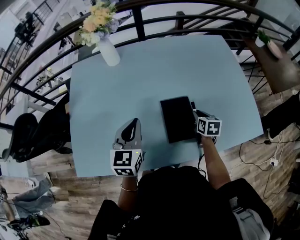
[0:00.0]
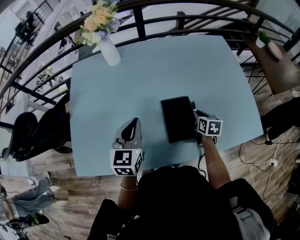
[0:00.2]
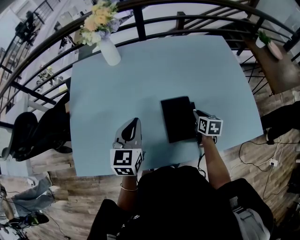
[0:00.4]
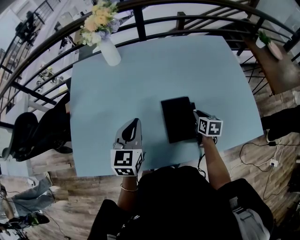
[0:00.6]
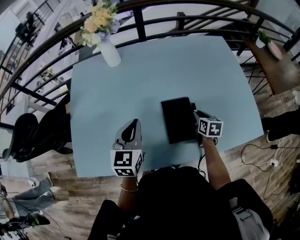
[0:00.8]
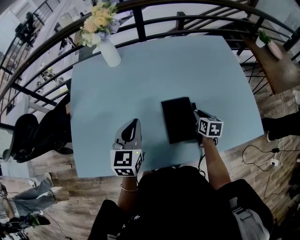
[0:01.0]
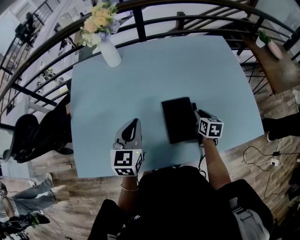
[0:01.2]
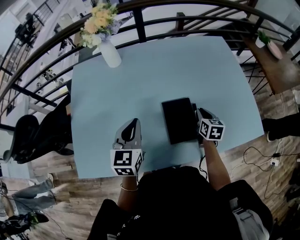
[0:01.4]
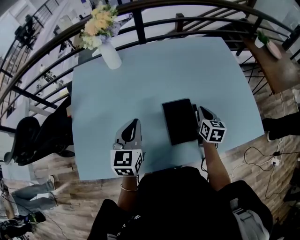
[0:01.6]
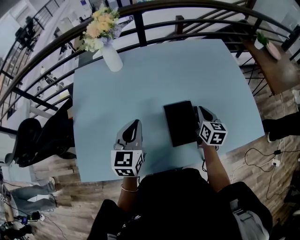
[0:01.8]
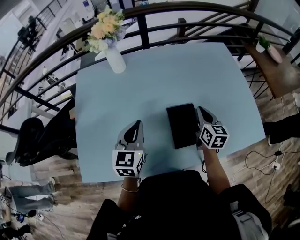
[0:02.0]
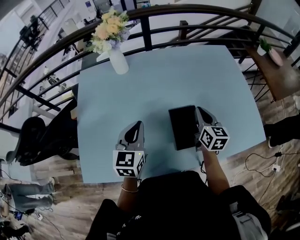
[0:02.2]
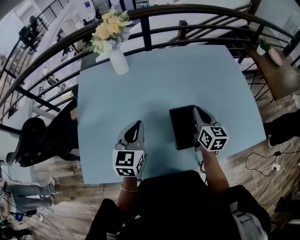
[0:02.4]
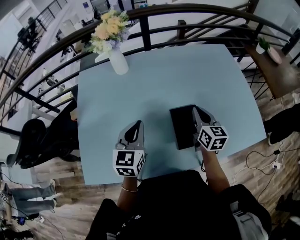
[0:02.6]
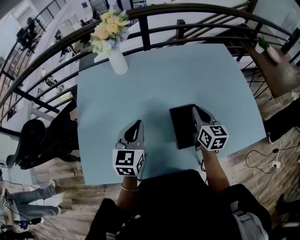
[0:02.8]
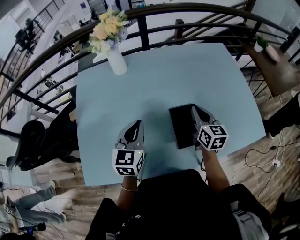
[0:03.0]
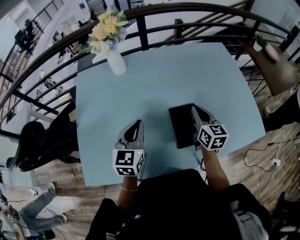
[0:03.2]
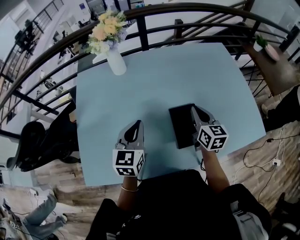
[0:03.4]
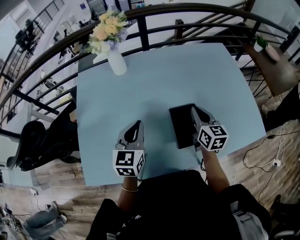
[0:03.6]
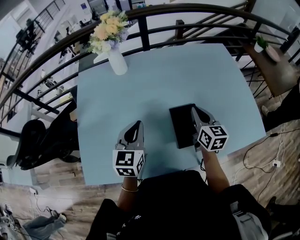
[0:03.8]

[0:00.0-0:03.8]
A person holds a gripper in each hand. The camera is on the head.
0:00.0 to 0:01.2: The two grippers keep their place.
0:01.2 to 0:02.6: The right gripper travels upward and to the left by about 15 cm, and swivels some 20 degrees.
0:02.6 to 0:03.8: Neither gripper changes place.

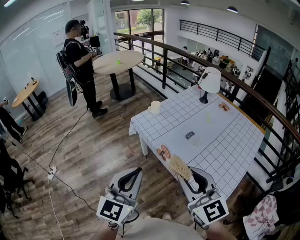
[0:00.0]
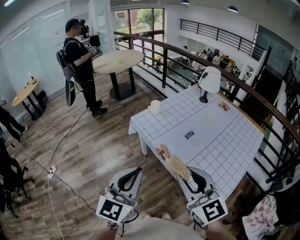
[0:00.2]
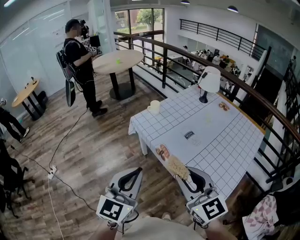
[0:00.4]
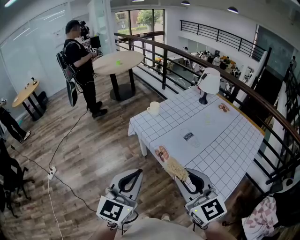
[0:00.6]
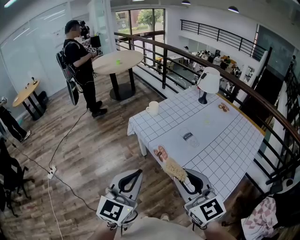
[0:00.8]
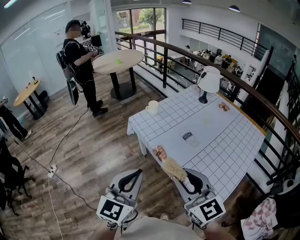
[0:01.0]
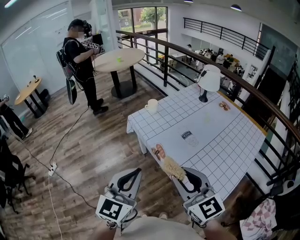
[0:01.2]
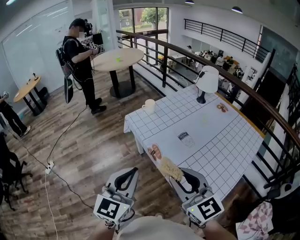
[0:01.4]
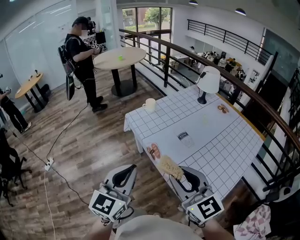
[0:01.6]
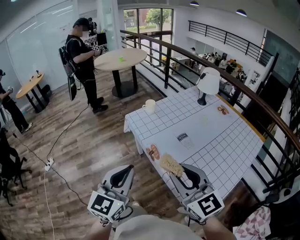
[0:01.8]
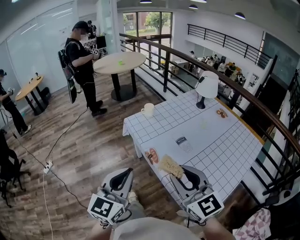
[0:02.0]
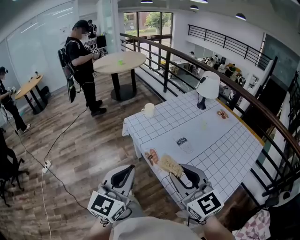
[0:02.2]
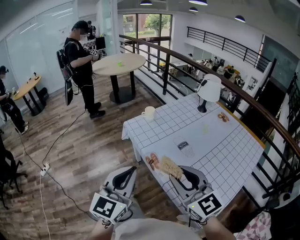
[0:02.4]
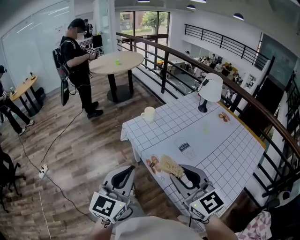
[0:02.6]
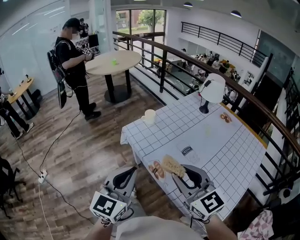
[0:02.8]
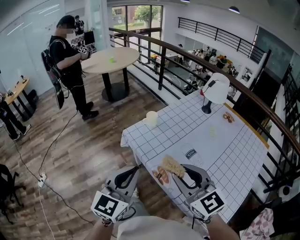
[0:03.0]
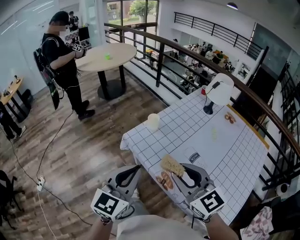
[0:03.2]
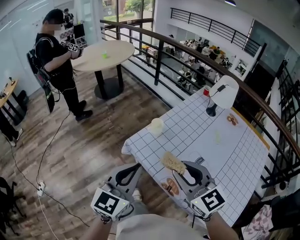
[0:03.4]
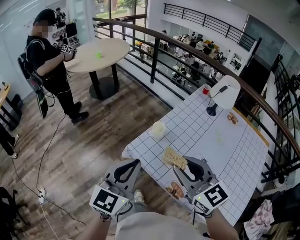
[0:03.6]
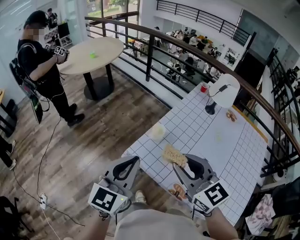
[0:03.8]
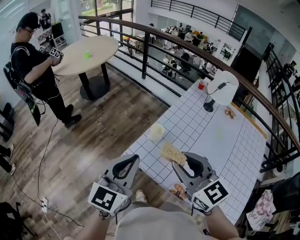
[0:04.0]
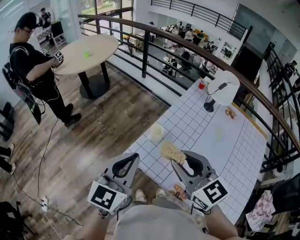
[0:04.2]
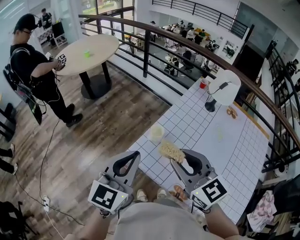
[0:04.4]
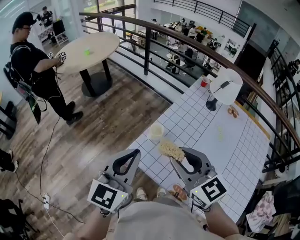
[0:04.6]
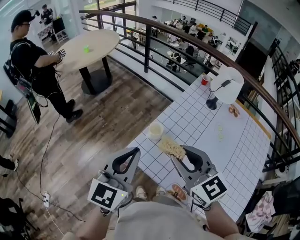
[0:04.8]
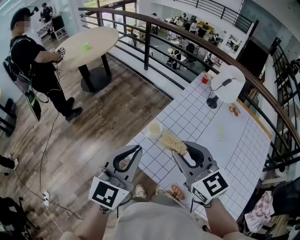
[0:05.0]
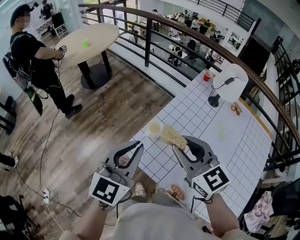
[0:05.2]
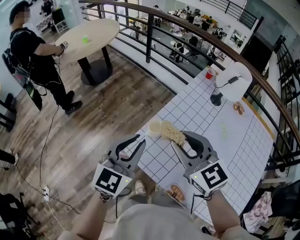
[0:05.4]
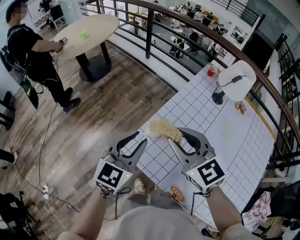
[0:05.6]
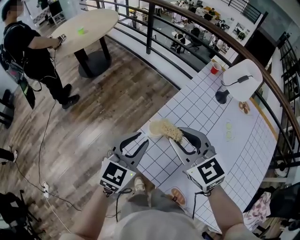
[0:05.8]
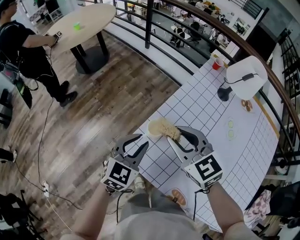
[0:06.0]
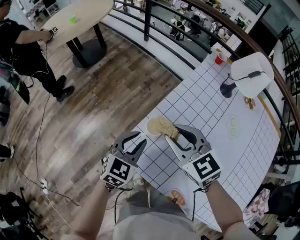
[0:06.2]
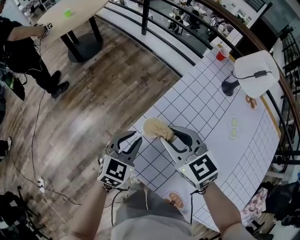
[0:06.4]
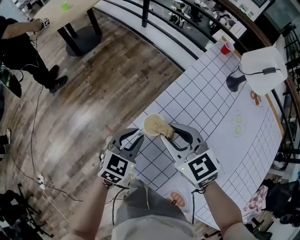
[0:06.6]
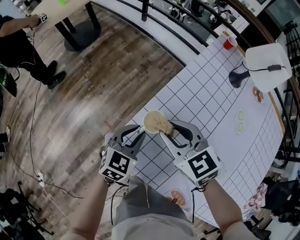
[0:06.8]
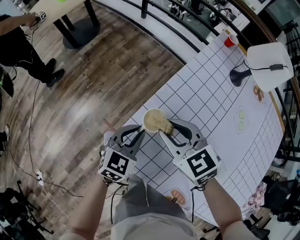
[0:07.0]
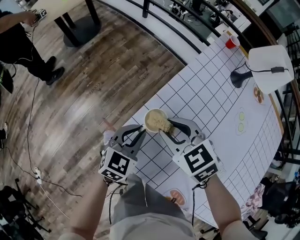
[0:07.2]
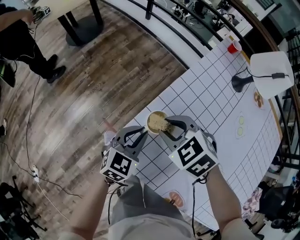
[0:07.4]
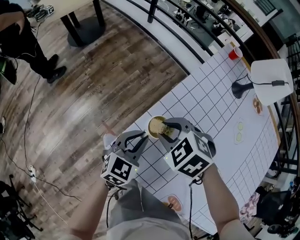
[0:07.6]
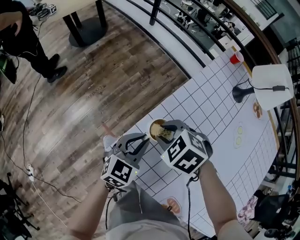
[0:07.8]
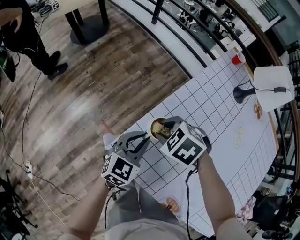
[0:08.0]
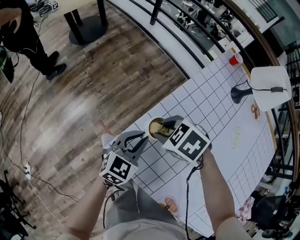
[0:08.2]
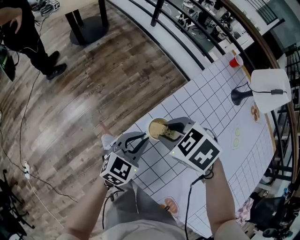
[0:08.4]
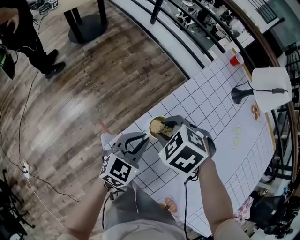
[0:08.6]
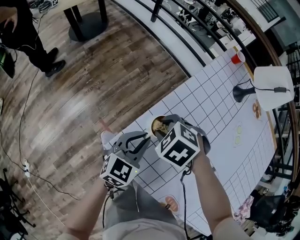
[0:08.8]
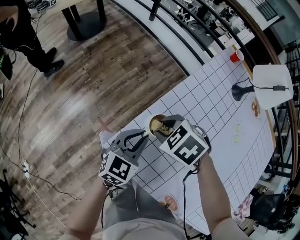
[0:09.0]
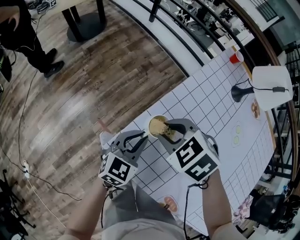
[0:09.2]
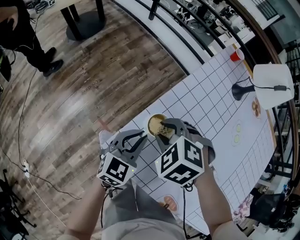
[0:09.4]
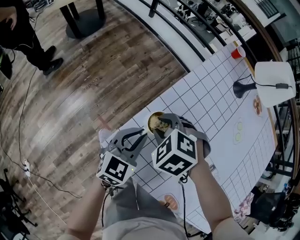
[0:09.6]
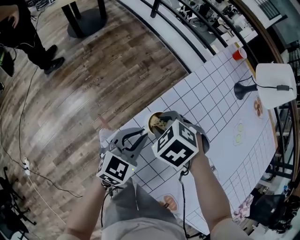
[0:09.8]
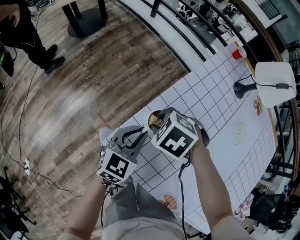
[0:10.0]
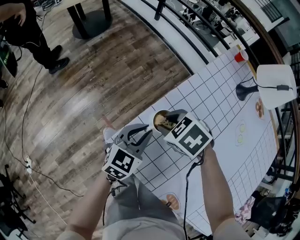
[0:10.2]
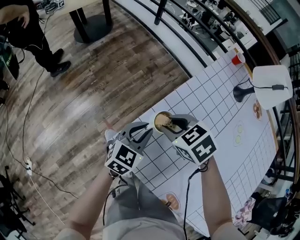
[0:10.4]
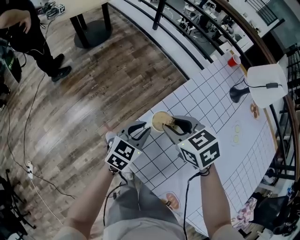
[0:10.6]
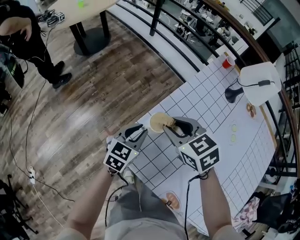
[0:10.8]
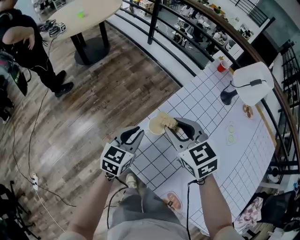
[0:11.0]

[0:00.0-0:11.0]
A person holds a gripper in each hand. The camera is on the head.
0:00.0 to 0:01.6: Both grippers move to the right, about 5 cm.
0:01.6 to 0:03.2: Both grippers move forward, some 25 cm.
0:03.2 to 0:04.8: Both grippers travel together forward, about 20 cm.
0:04.8 to 0:06.2: The left gripper heads downward and forward, covering some 30 cm, swivels about 30 degrees, and opens, while the right gripper travels forward and downward by approximately 25 cm.
0:06.2 to 0:07.8: The right gripper moves downward, approximately 15 cm, and angles its fingers downward, by some 40 degrees. Meanwhile the left gripper moves downward, roughly 10 cm.
0:07.8 to 0:09.4: There are only small adjustments of the grippers.
0:09.4 to 0:11.0: The right gripper goes roughly 10 cm upward, and tilts its fingers some 30 degrees upward. Meanwhile the left gripper shifts roughly 5 cm upward.

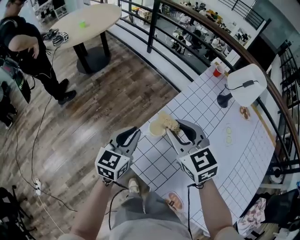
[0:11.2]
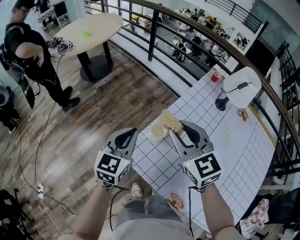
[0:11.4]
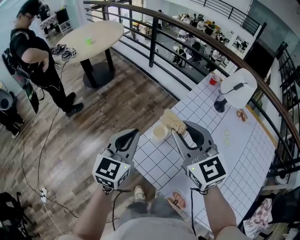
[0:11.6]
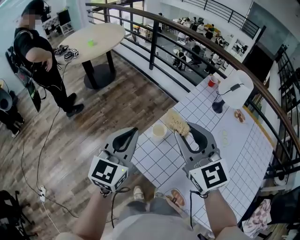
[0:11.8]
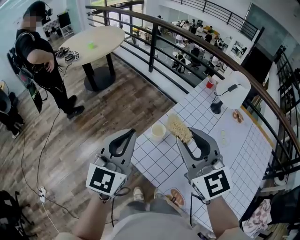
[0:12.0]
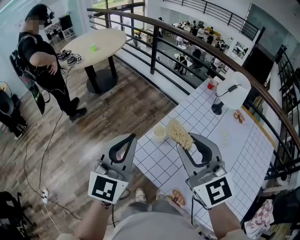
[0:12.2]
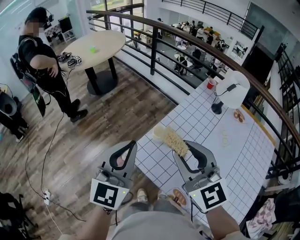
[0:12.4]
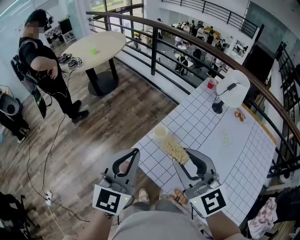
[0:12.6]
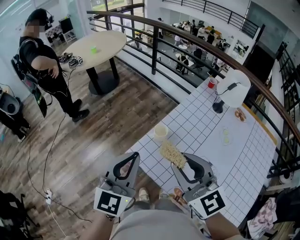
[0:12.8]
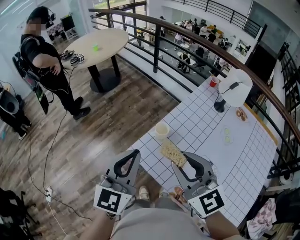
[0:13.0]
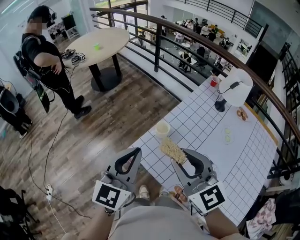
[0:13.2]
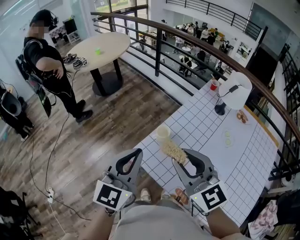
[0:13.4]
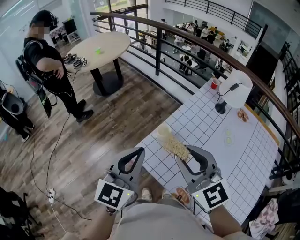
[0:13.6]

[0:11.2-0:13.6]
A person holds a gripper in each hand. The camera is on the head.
0:11.2 to 0:12.4: The grippers both shift upward and backward by some 25 cm. The left gripper turns by roughly 30 degrees; the right gripper rotates approximately 20 degrees.
0:12.4 to 0:13.6: The grippers make only small movements.

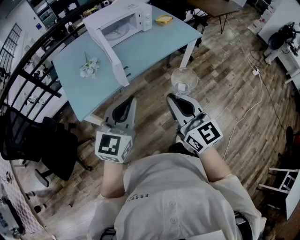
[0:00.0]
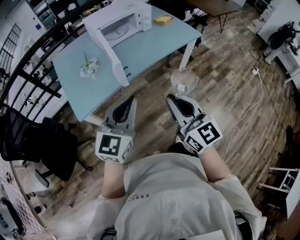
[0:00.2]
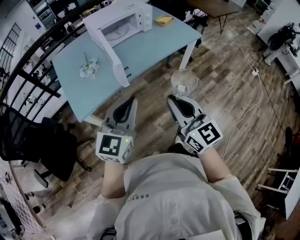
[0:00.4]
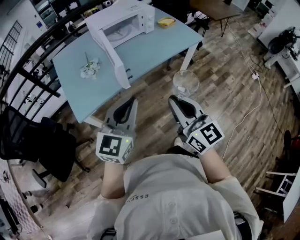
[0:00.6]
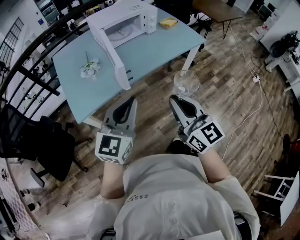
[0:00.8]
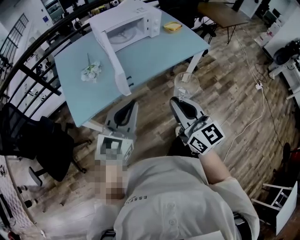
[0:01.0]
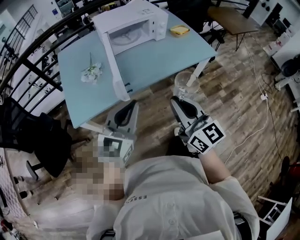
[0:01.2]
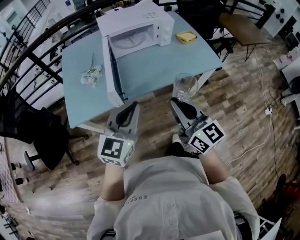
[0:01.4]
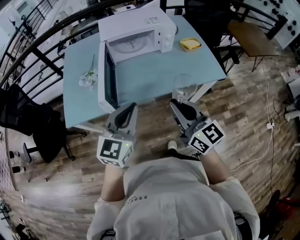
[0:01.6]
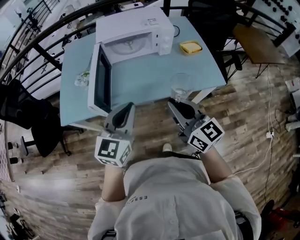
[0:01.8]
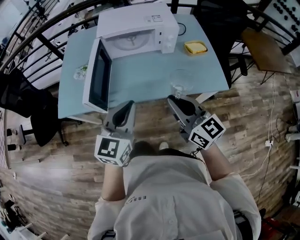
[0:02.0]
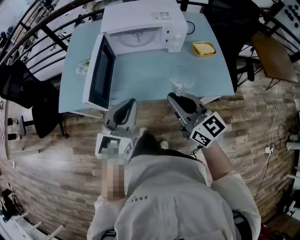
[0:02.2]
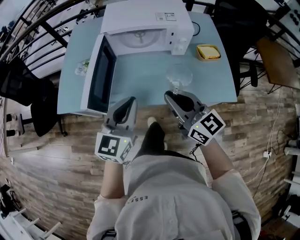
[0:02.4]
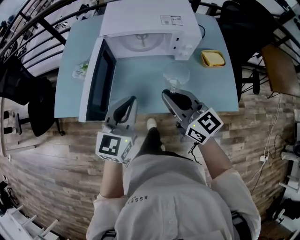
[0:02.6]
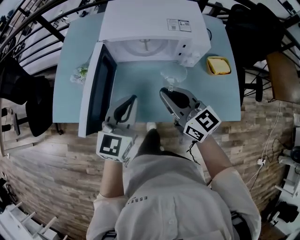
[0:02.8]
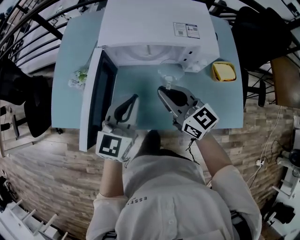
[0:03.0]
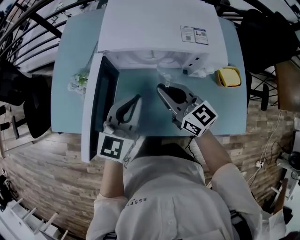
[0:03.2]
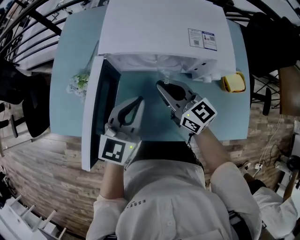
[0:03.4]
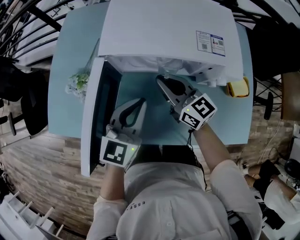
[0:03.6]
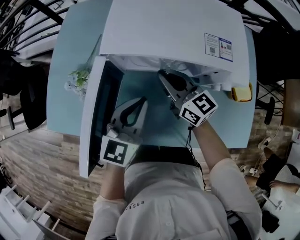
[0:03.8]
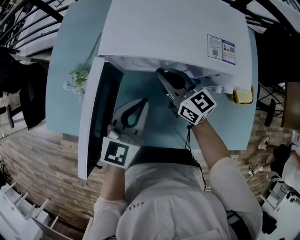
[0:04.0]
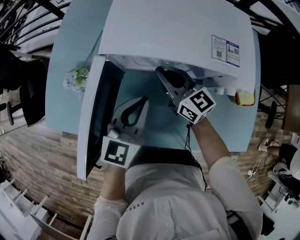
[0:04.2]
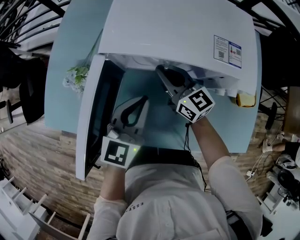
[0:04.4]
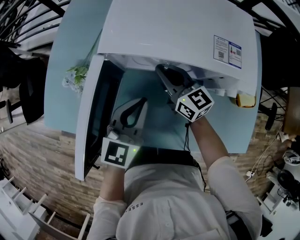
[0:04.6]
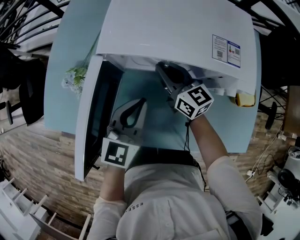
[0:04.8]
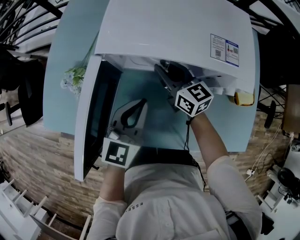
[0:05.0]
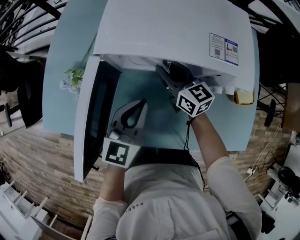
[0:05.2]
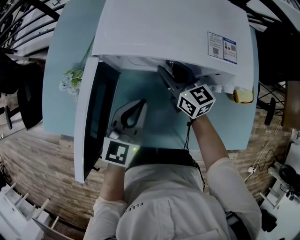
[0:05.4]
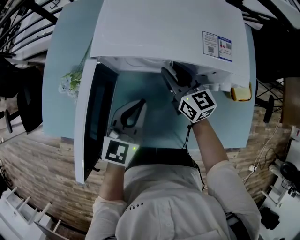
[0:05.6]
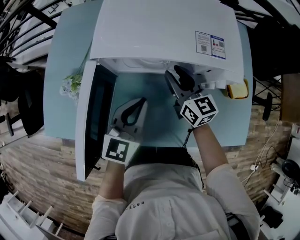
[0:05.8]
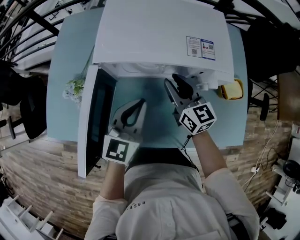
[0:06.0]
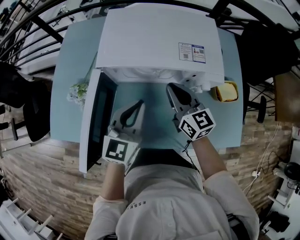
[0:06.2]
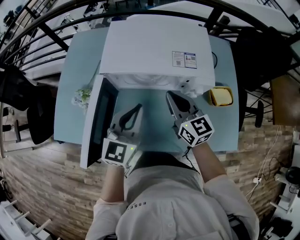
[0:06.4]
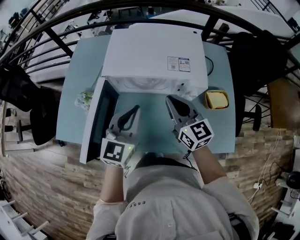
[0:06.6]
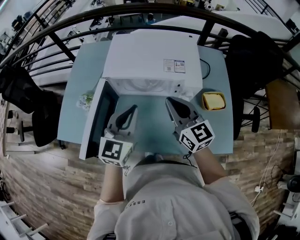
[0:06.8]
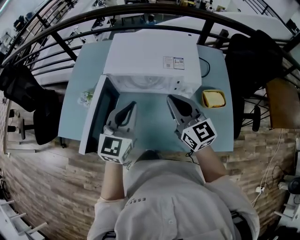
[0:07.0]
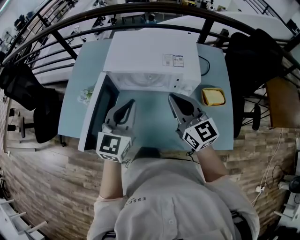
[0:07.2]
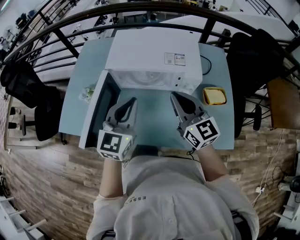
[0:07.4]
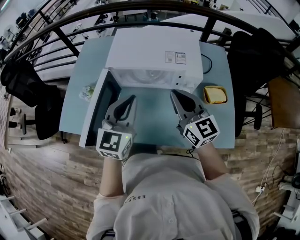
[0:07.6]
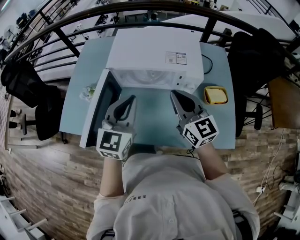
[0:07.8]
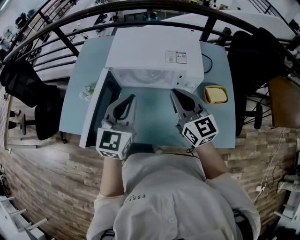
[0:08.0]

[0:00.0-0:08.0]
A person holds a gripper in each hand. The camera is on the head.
0:00.0 to 0:01.6: The grippers both shift forward and to the right by approximately 25 cm. The left gripper changes its angle by some 20 degrees, while the right gripper swivels about 30 degrees.
0:01.6 to 0:03.2: Both grippers move forward, some 30 cm. The right gripper rotates roughly 30 degrees.
0:03.2 to 0:04.8: The left gripper heads downward, covering about 5 cm. The right gripper is displaced forward and downward by roughly 15 cm.
0:04.8 to 0:06.4: The left gripper moves upward, about 10 cm; the right gripper moves upward, backward and to the right, roughly 15 cm, and opens and closes again.
0:06.4 to 0:08.0: The right gripper shifts approximately 10 cm upward and backward; the left gripper shifts roughly 5 cm upward.
